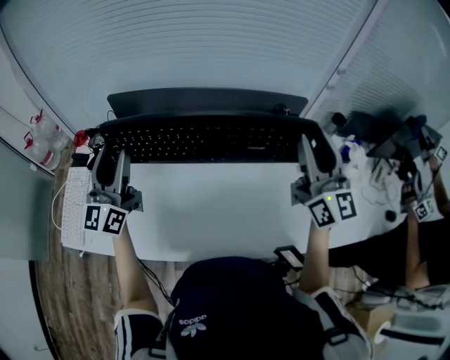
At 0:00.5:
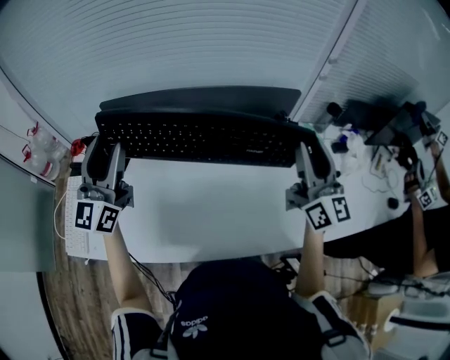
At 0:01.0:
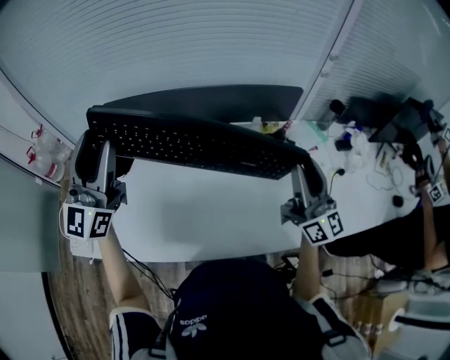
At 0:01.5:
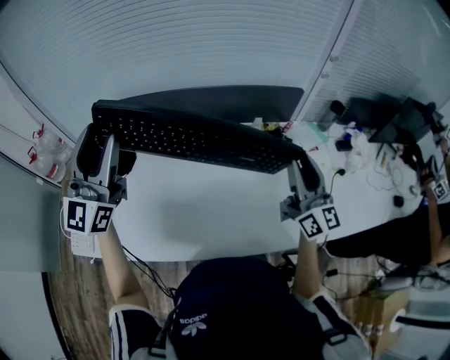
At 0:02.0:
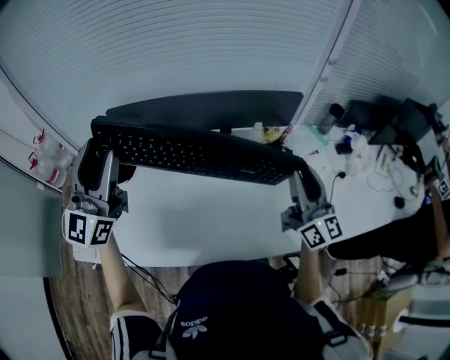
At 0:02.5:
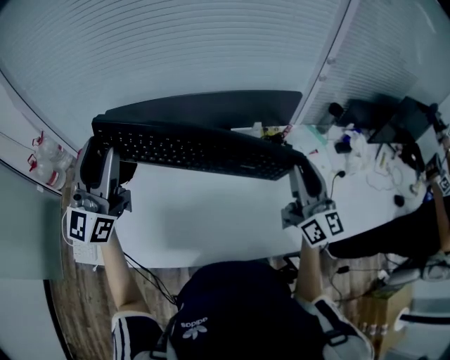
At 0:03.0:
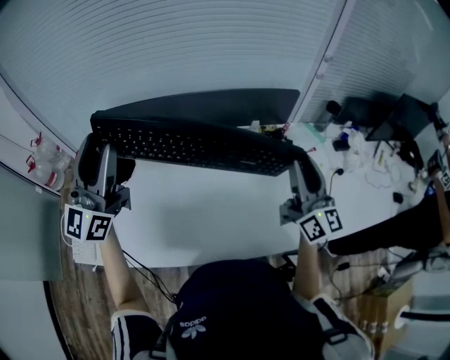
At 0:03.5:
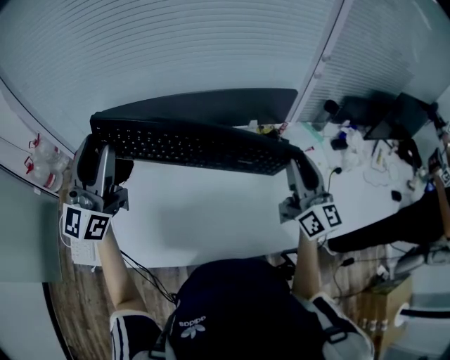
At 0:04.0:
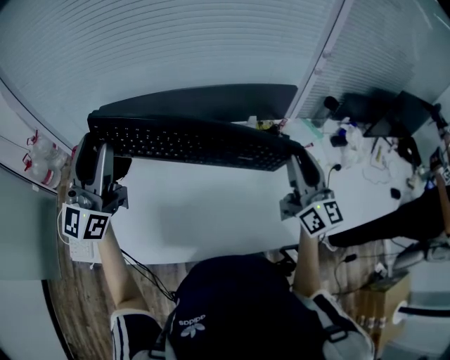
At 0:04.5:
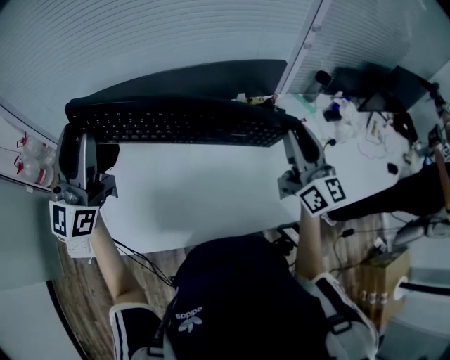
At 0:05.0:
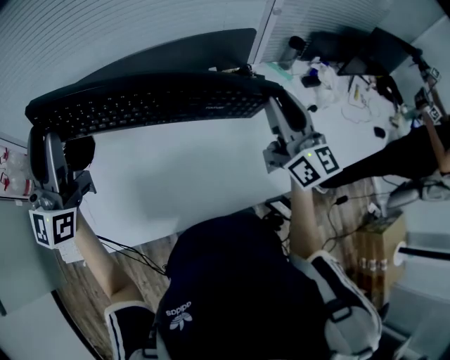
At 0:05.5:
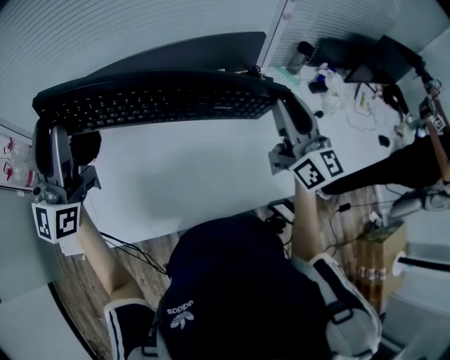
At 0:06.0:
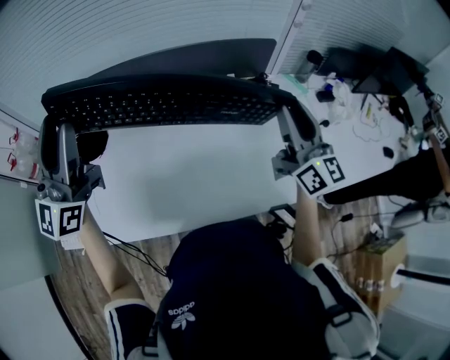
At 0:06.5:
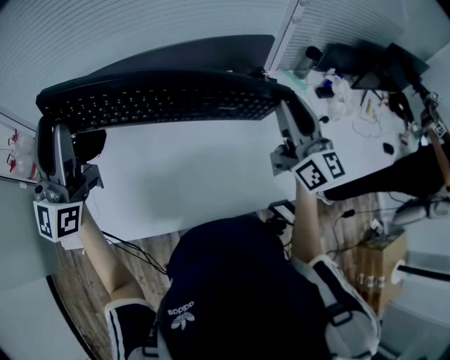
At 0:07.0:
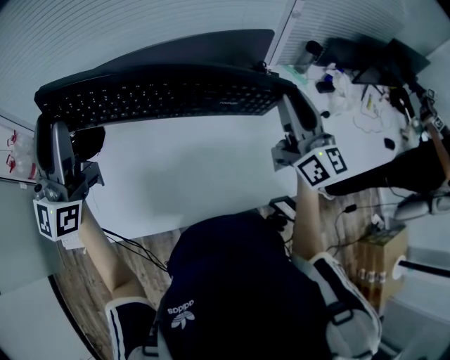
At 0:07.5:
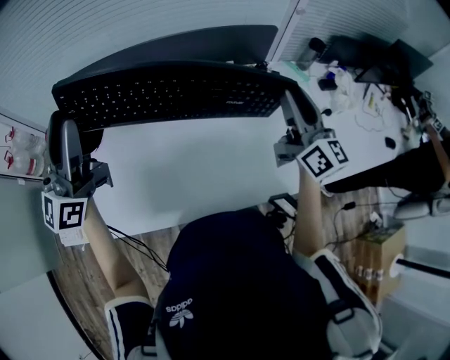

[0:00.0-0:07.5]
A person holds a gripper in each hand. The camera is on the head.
0:00.0 to 0:02.0: The left gripper shifts approximately 10 cm upward, while the right gripper is displaced downward by approximately 10 cm.
0:02.0 to 0:05.5: The grippers move only a little.
0:05.5 to 0:07.5: The grippers make only small movements.

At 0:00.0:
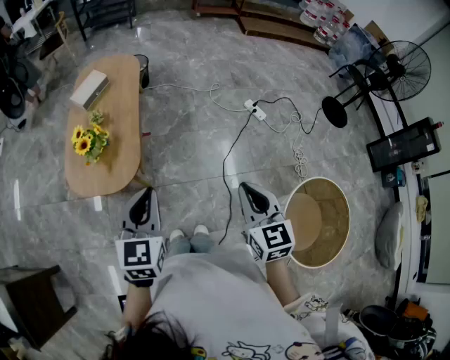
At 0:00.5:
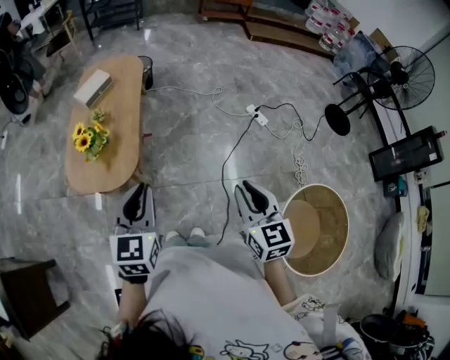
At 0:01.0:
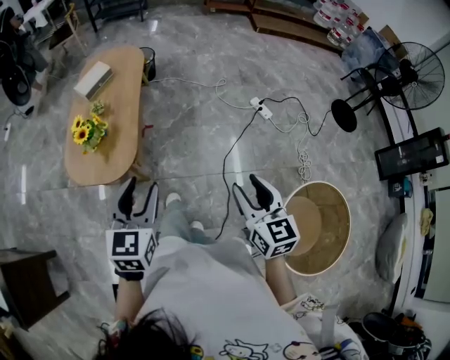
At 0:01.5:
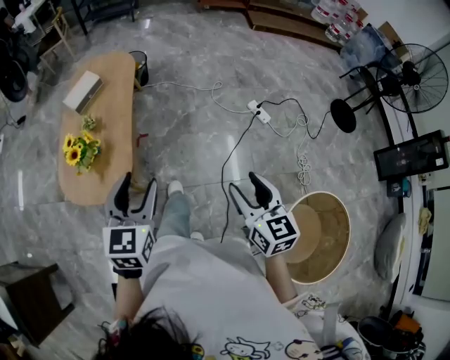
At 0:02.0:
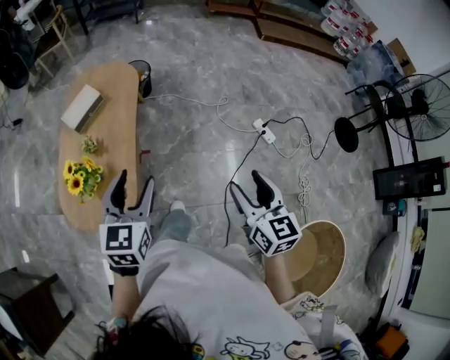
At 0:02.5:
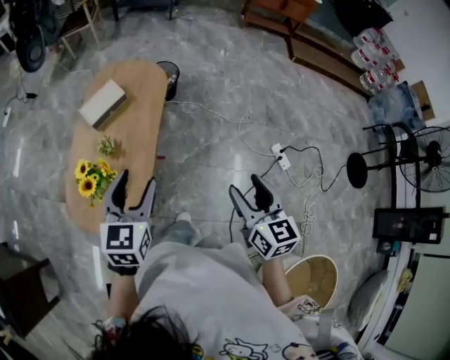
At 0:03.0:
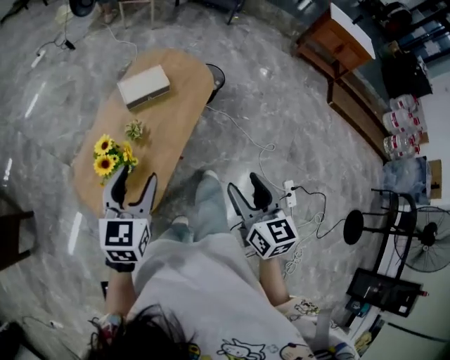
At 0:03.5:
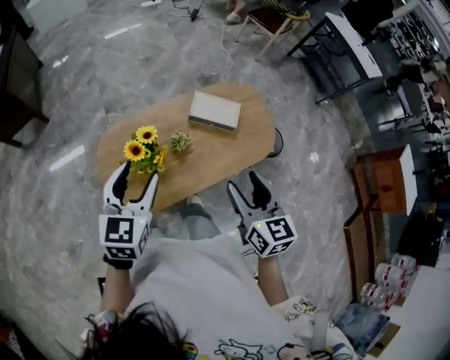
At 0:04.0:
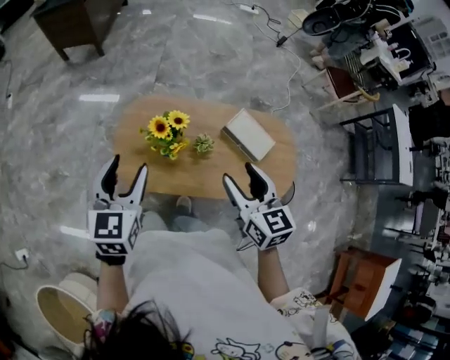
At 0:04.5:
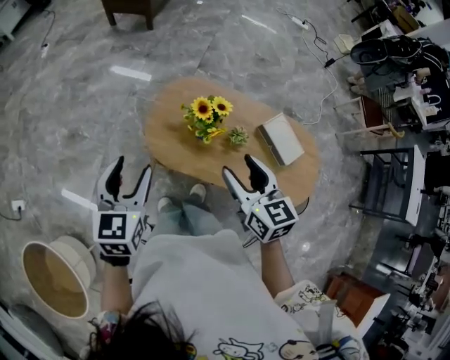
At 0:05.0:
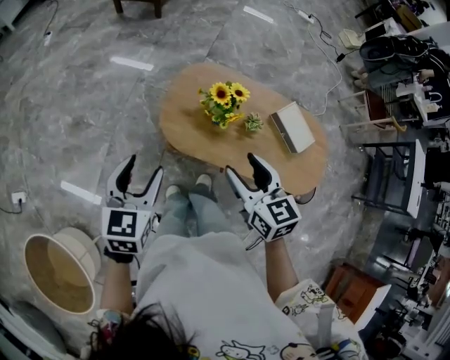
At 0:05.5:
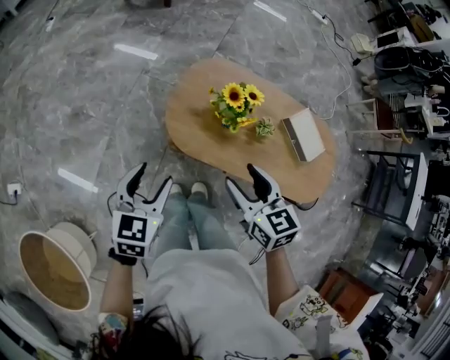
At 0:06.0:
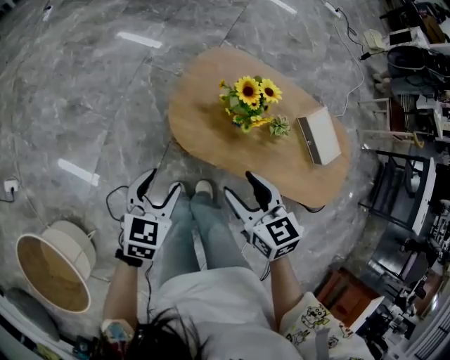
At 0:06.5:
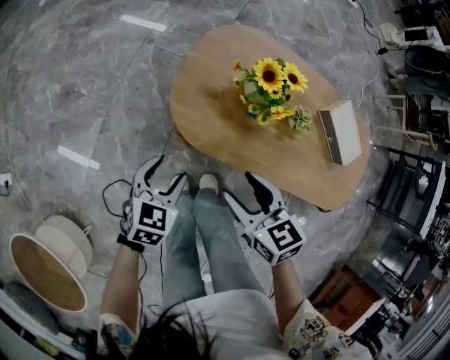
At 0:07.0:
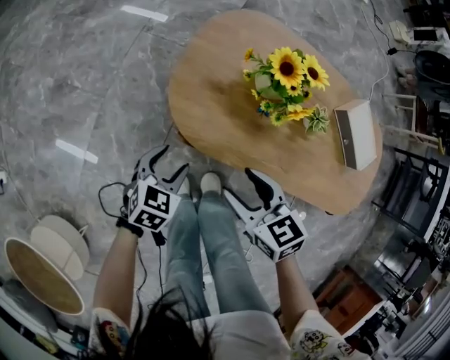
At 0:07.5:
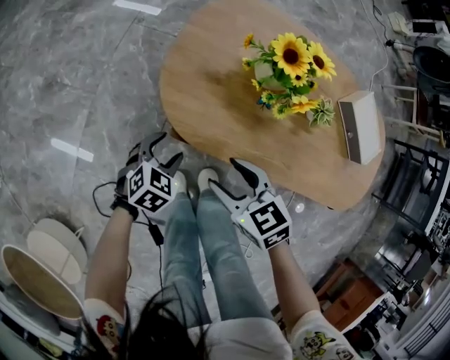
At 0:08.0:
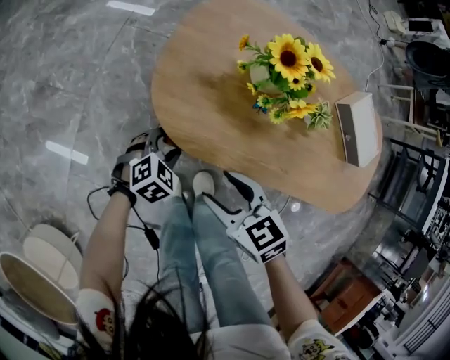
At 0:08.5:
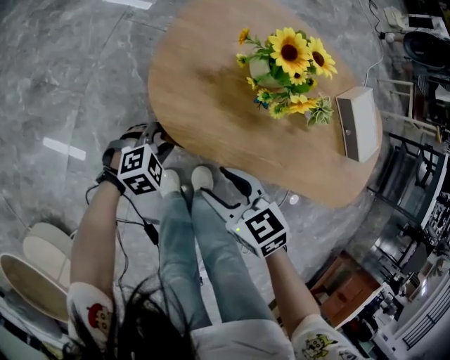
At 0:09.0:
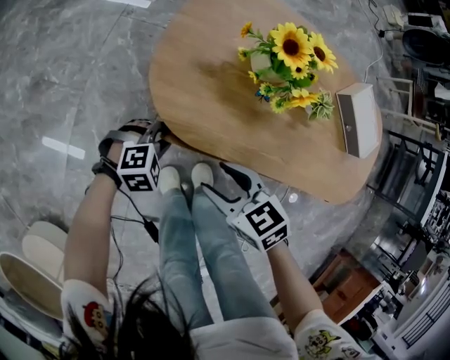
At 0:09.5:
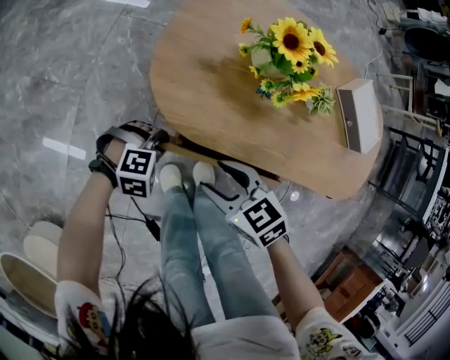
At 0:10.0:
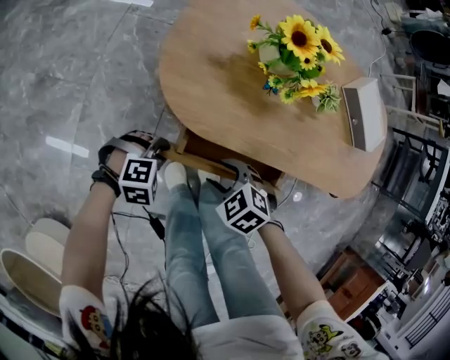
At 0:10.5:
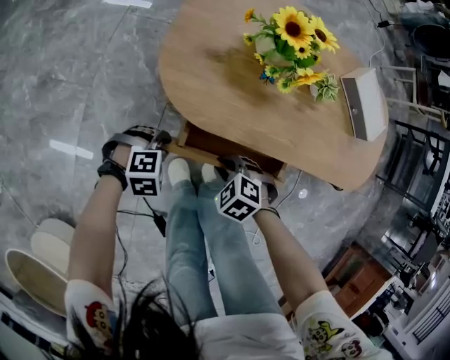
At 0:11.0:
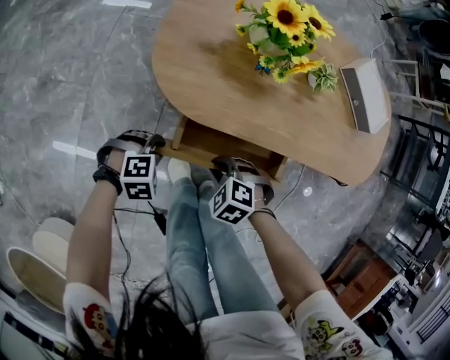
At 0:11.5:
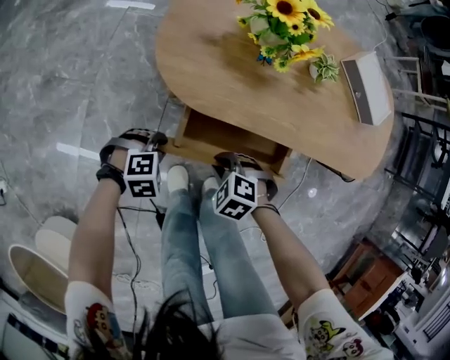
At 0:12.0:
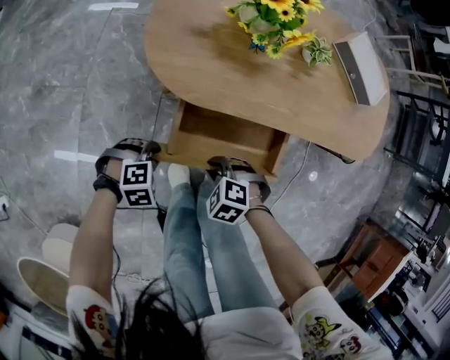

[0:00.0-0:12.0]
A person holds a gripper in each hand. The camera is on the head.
0:00.0 to 0:02.0: The two grippers go some 25 cm forward. The right gripper opens up. The left gripper opens.
0:02.0 to 0:04.0: The right gripper moves roughly 60 cm, and changes its angle by approximately 100 degrees. Meanwhile the left gripper ends up approximately 25 cm from where it was, and rotates about 100 degrees.
0:04.0 to 0:06.0: The right gripper heads to the left and downward, covering some 30 cm, and swivels about 30 degrees; the left gripper heads downward, to the left and backward, covering roughly 30 cm.
0:06.0 to 0:08.0: The grippers both shift downward by some 30 cm. The left gripper changes its angle by roughly 40 degrees.
0:08.0 to 0:10.0: The right gripper is displaced downward by roughly 10 cm, and rotates roughly 30 degrees; the left gripper shifts by roughly 10 cm, swivels about 40 degrees, and closes up.
0:10.0 to 0:12.0: The left gripper moves approximately 10 cm; the right gripper moves some 10 cm, and closes.

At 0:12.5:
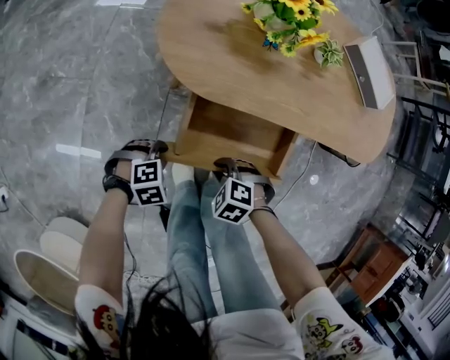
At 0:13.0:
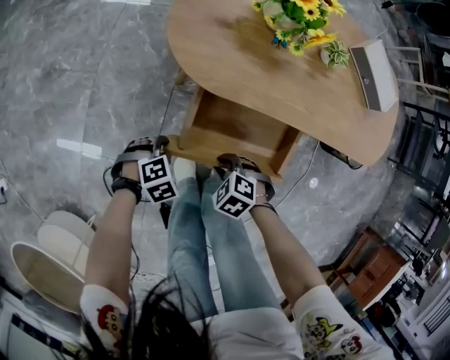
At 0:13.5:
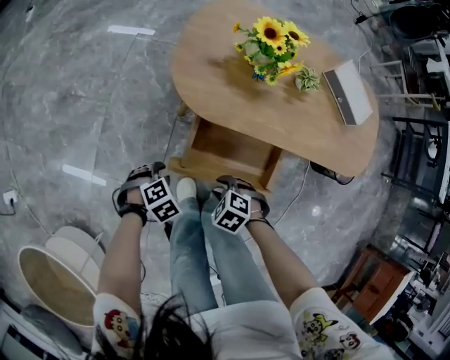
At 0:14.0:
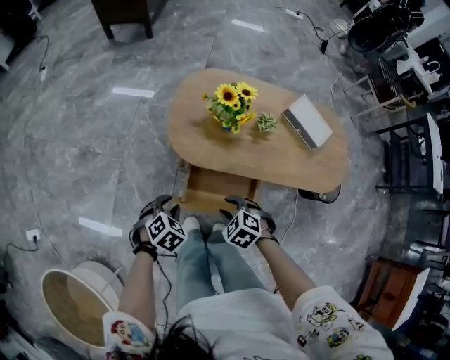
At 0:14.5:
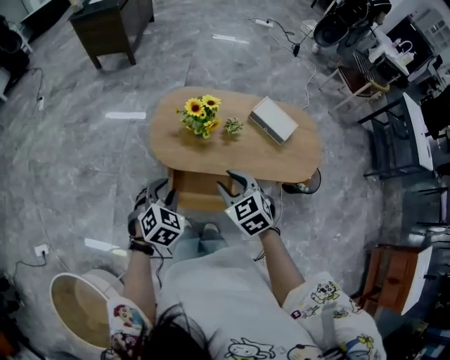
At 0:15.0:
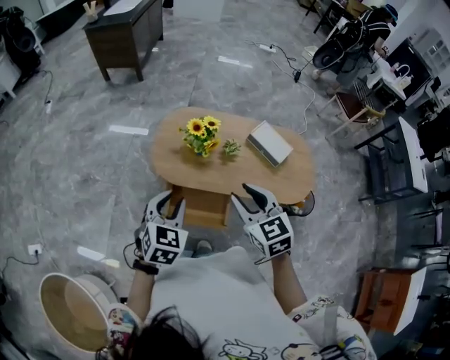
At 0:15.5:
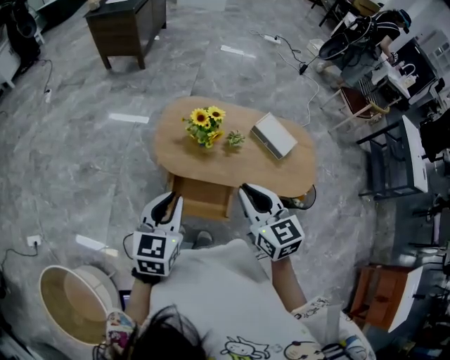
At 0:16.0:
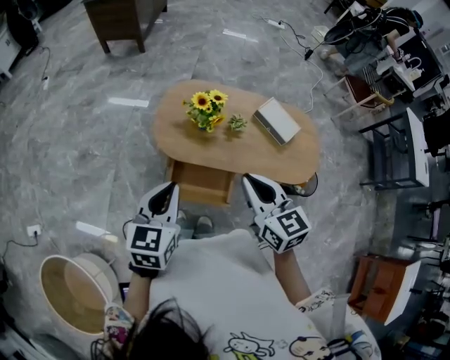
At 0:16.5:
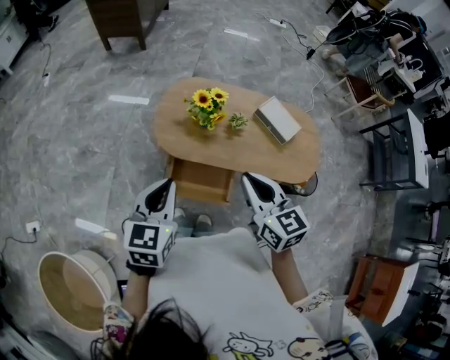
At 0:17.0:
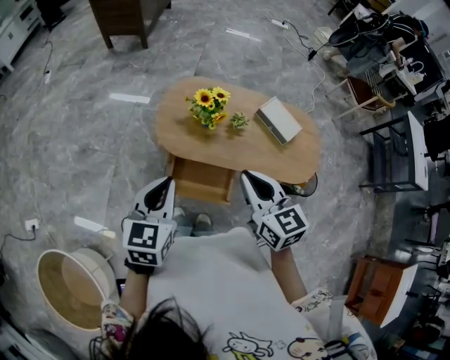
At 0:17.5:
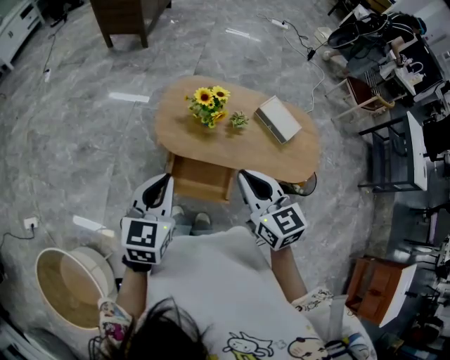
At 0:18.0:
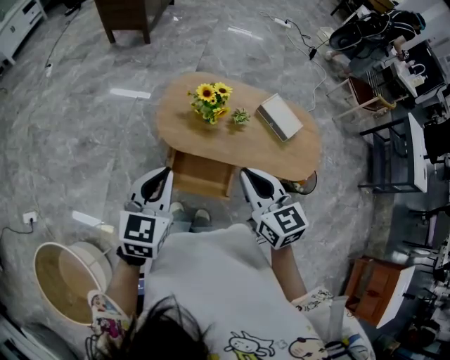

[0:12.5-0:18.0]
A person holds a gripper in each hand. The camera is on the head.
0:12.5 to 0:14.5: The two grippers go some 50 cm upward. The right gripper tilts its fingers some 40 degrees upward. The left gripper rotates roughly 50 degrees.
0:14.5 to 0:16.0: Both grippers move upward, some 15 cm. The left gripper rotates approximately 40 degrees, and closes. The right gripper rotates about 30 degrees, and closes up.
0:16.0 to 0:18.0: The grippers move only a little.

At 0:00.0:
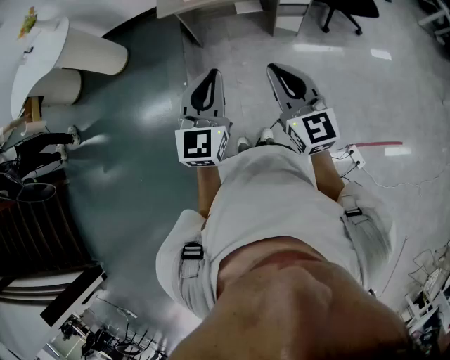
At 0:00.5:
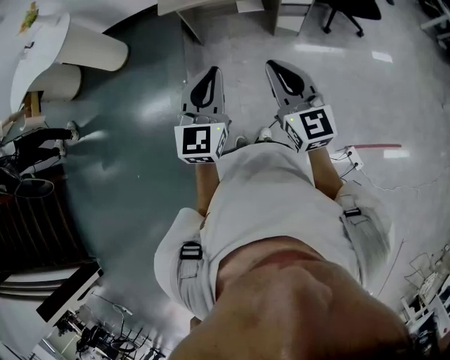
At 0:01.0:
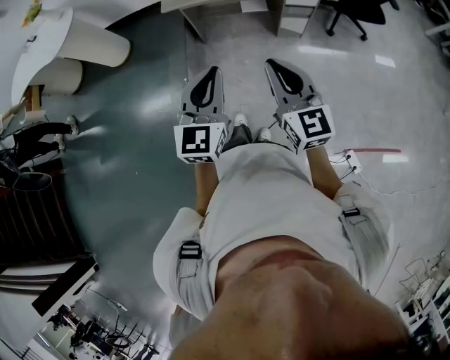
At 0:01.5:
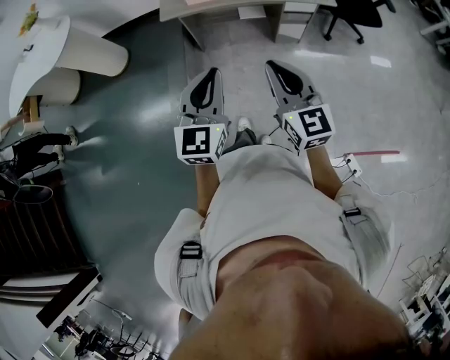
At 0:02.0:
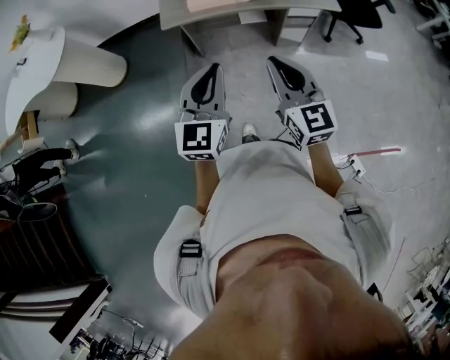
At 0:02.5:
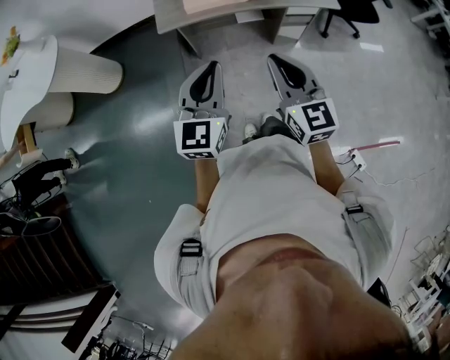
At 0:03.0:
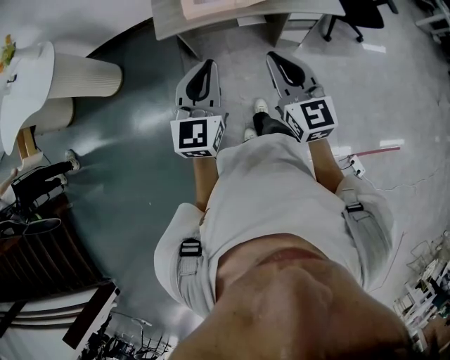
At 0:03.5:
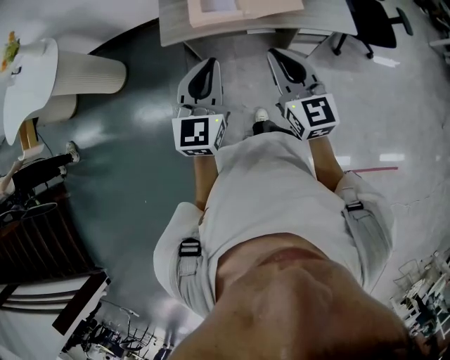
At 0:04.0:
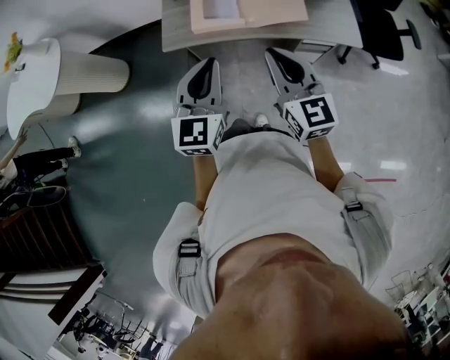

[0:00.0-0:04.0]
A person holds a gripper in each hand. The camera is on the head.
0:00.0 to 0:02.0: The left gripper travels forward and to the left by approximately 15 cm. Meanwhile the right gripper shifts about 15 cm forward.
0:02.0 to 0:04.0: The two grippers go some 25 cm forward.
